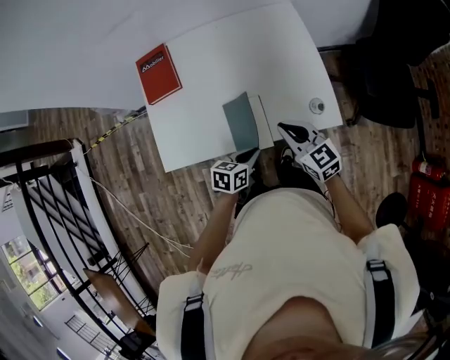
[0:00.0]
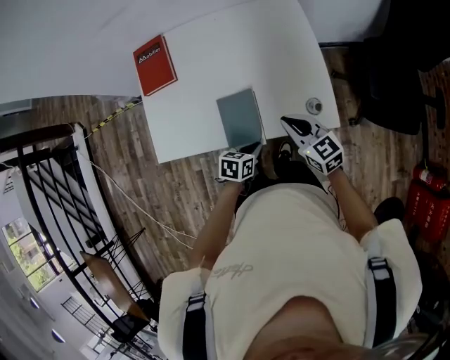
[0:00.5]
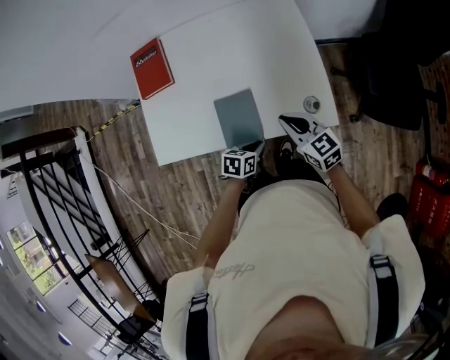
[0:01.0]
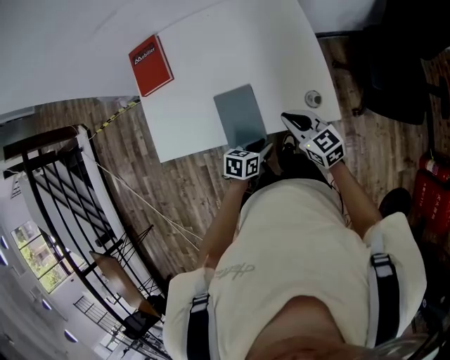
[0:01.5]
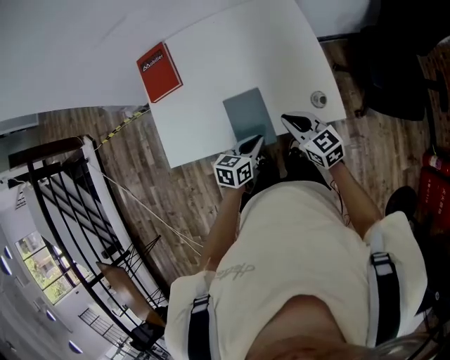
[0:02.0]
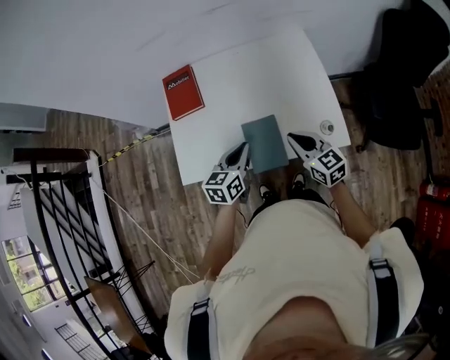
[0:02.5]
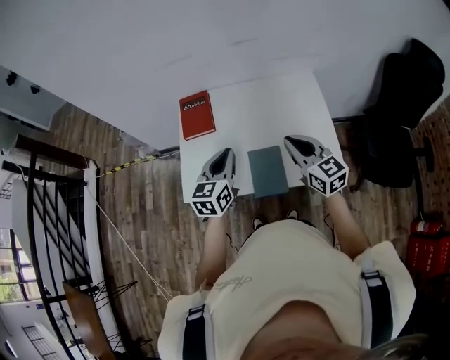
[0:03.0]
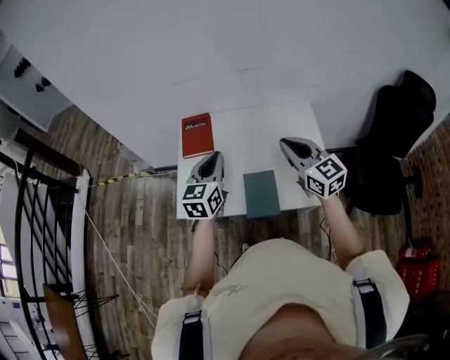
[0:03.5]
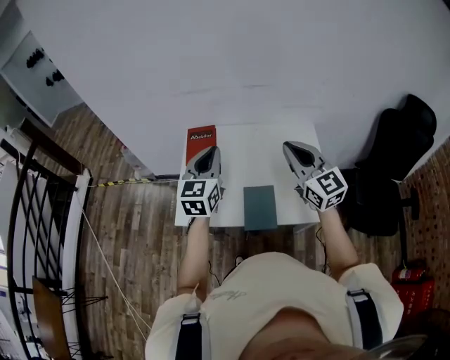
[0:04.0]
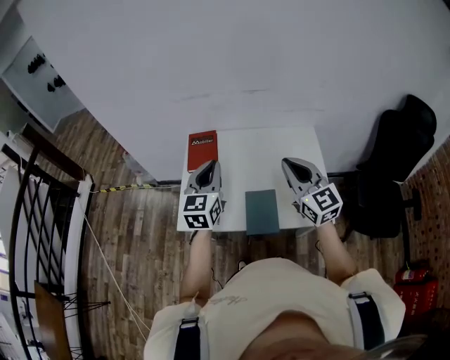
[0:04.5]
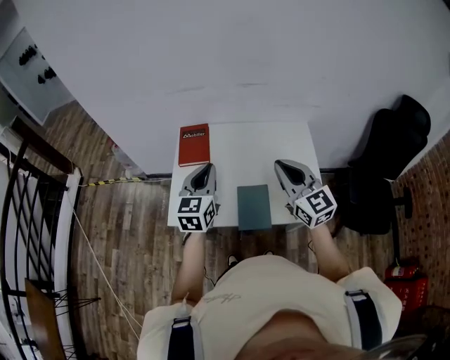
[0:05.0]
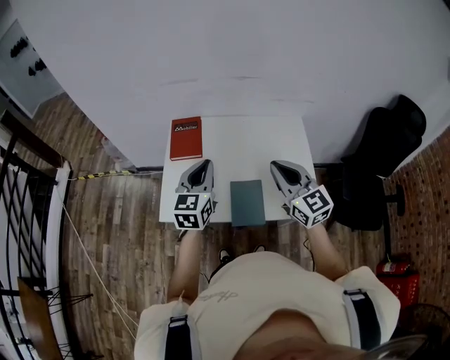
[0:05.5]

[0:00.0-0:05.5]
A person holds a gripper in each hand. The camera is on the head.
0:00.0 to 0:02.0: The left gripper reaches some 5 cm downward, then returns, and opens, then closes again.
0:02.0 to 0:03.5: The right gripper heads upward, covering roughly 25 cm, and rotates approximately 20 degrees. Meanwhile the left gripper travels upward, to the left and forward by some 35 cm, and changes its angle by approximately 40 degrees.

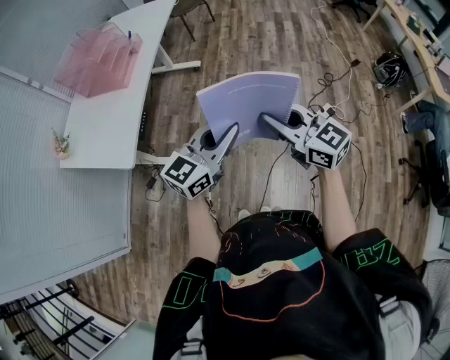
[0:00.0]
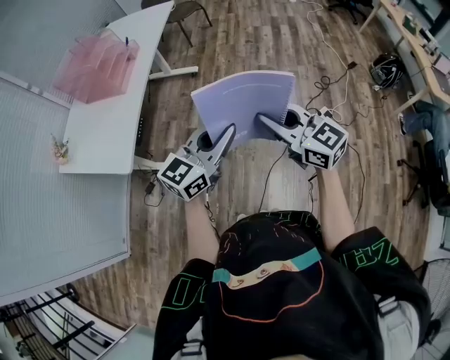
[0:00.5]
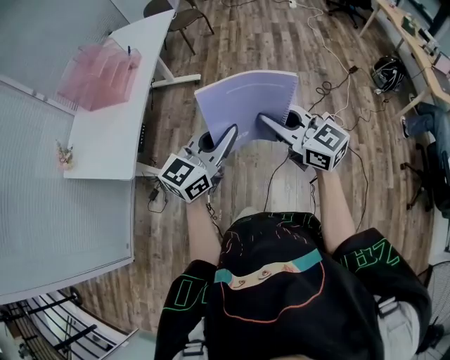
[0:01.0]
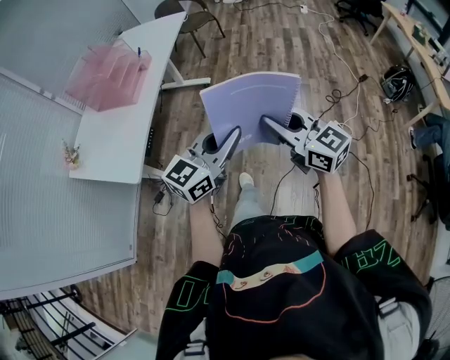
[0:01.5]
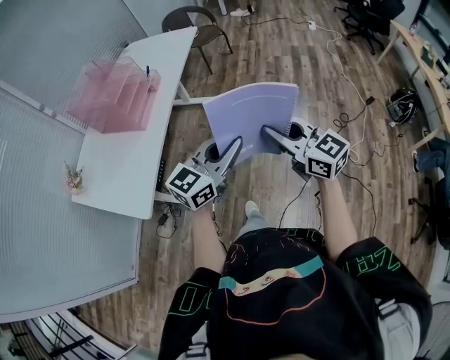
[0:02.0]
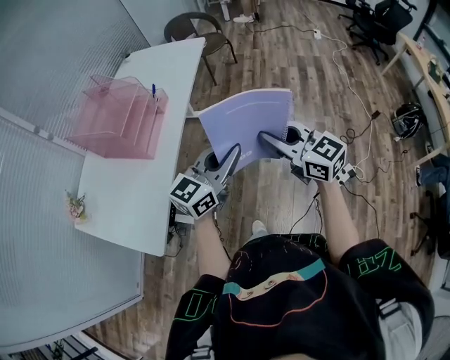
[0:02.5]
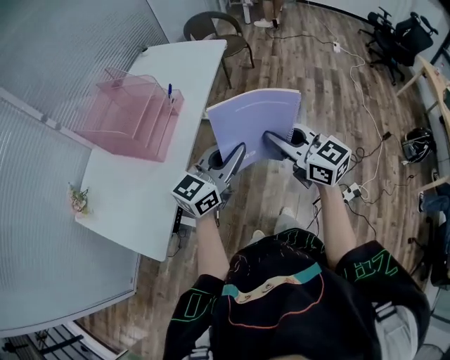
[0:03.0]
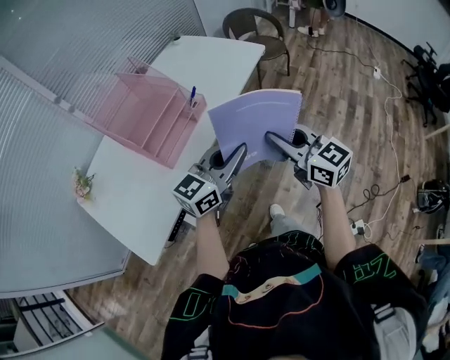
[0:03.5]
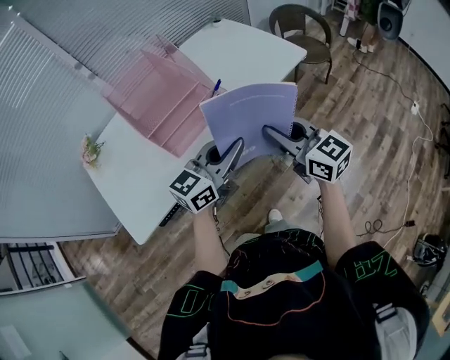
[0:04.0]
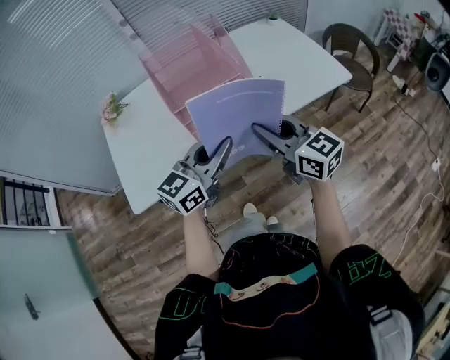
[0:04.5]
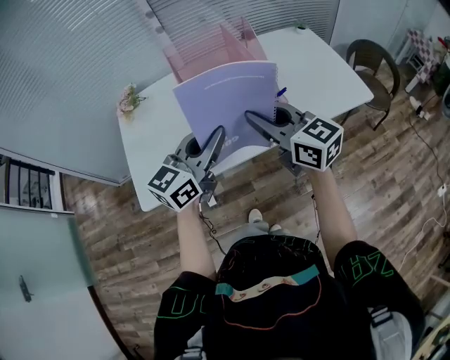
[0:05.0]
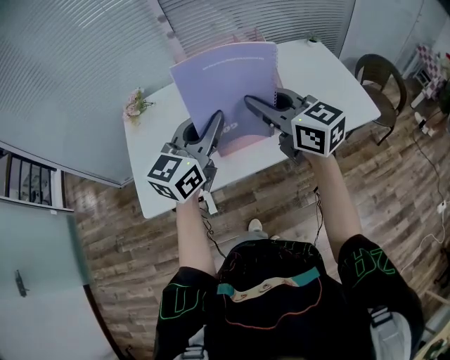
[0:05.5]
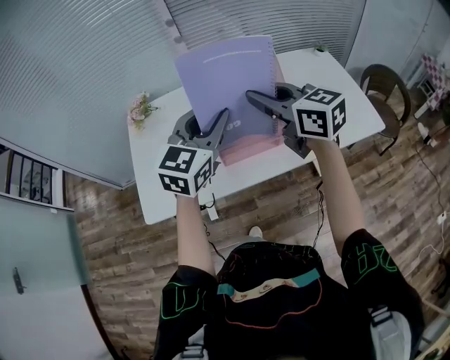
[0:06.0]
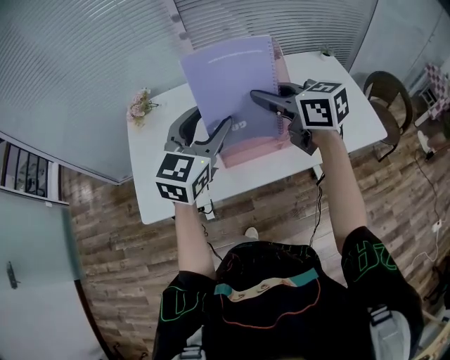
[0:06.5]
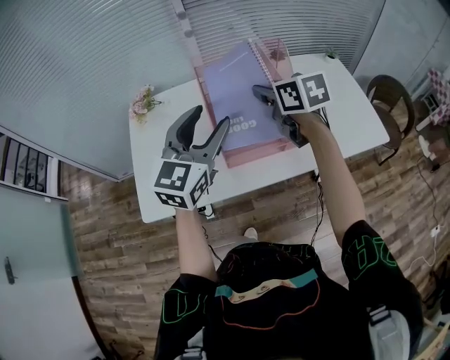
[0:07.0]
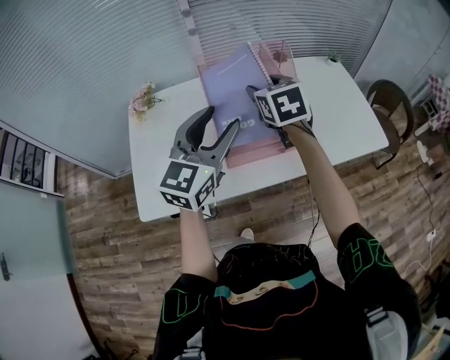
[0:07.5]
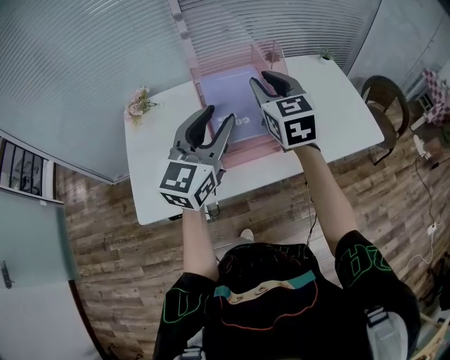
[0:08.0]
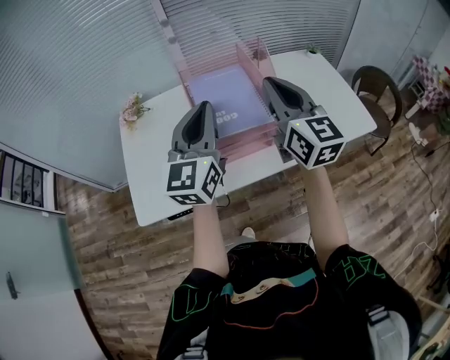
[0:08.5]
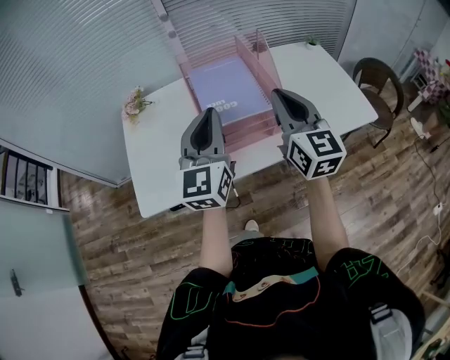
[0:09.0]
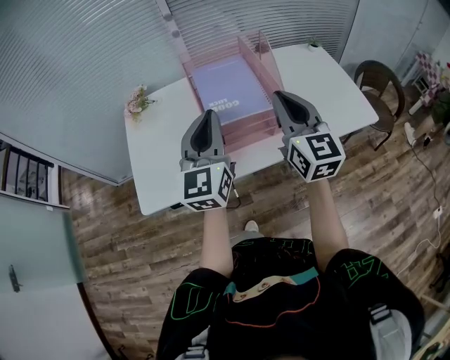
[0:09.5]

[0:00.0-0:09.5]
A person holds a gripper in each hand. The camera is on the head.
0:00.0 to 0:02.0: The two grippers go roughly 15 cm forward.
0:02.0 to 0:04.0: The two grippers travel together, roughly 40 cm. The left gripper rotates about 40 degrees. The right gripper swivels about 30 degrees.
0:04.0 to 0:05.5: The left gripper moves some 25 cm, and changes its angle by some 40 degrees. The right gripper changes place by some 25 cm, and changes its angle by approximately 30 degrees.
0:05.5 to 0:07.5: The right gripper heads forward and downward, covering some 15 cm, changes its angle by roughly 40 degrees, and opens its fingers. Meanwhile the left gripper opens its fingers.
0:07.5 to 0:09.5: The left gripper closes its fingers. Meanwhile the right gripper moves backward and to the right, roughly 20 cm, tilts its fingers about 30 degrees upward, and closes.

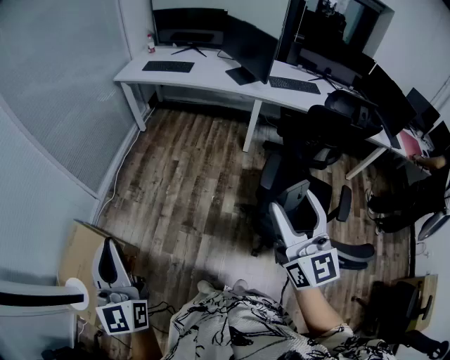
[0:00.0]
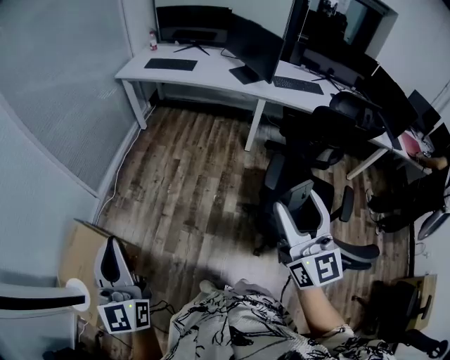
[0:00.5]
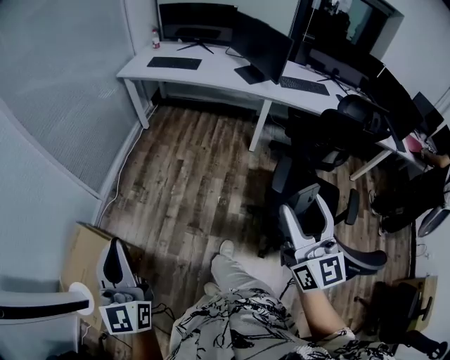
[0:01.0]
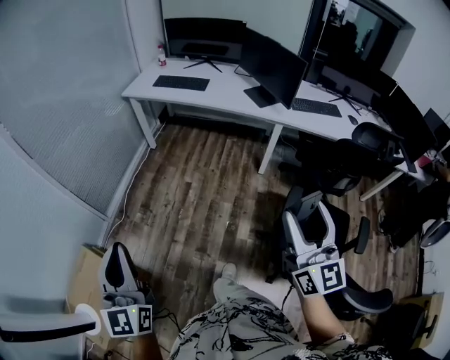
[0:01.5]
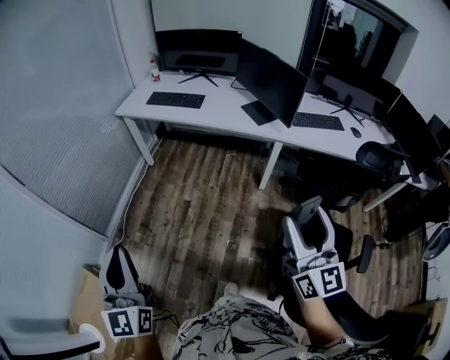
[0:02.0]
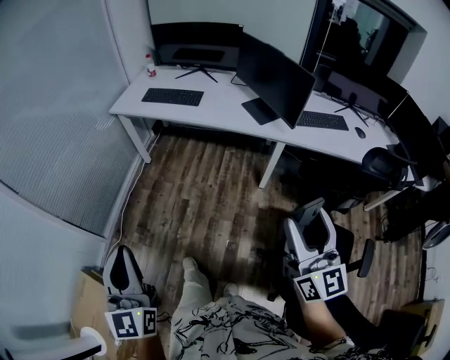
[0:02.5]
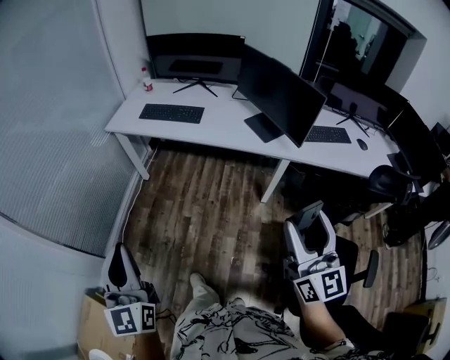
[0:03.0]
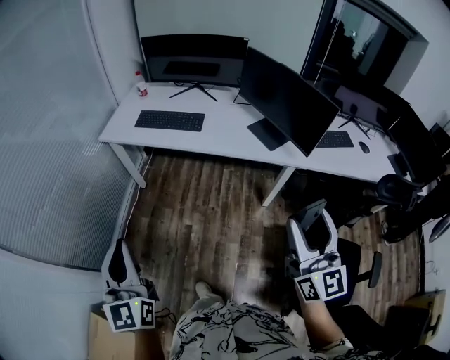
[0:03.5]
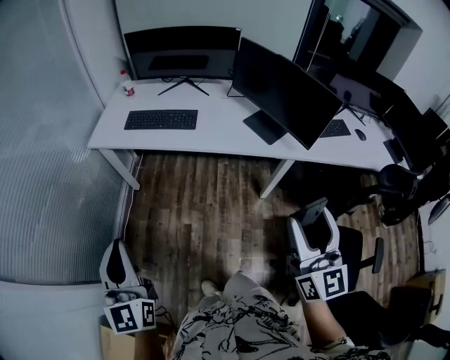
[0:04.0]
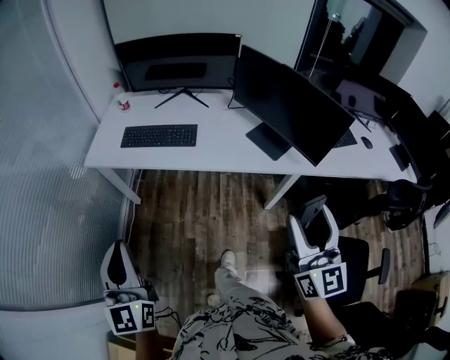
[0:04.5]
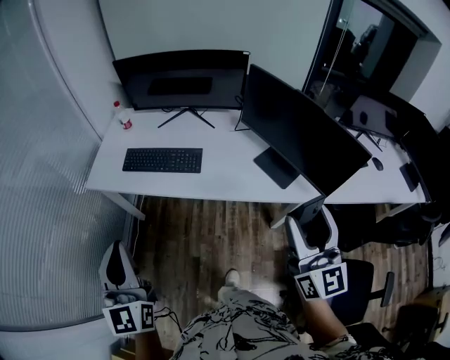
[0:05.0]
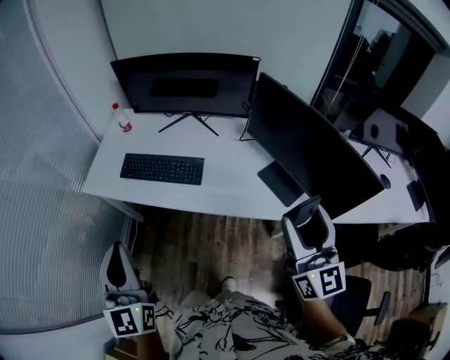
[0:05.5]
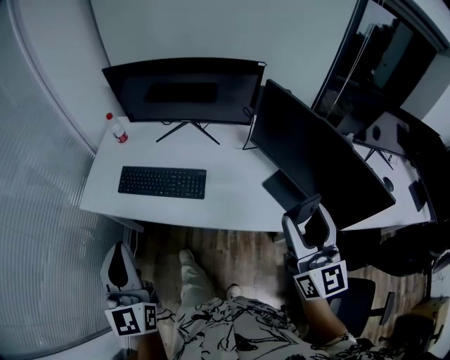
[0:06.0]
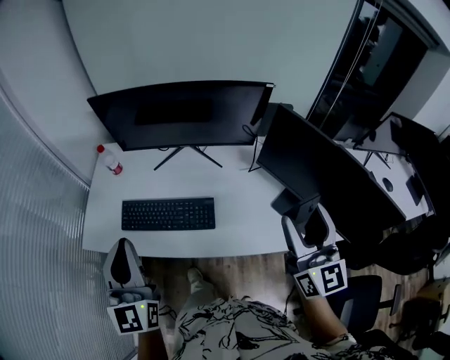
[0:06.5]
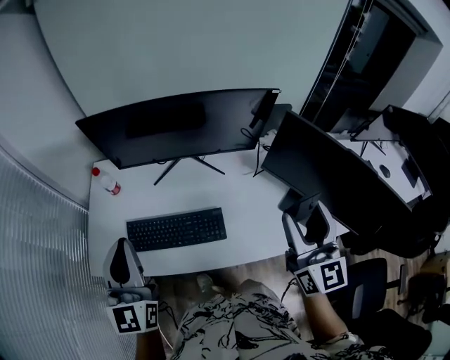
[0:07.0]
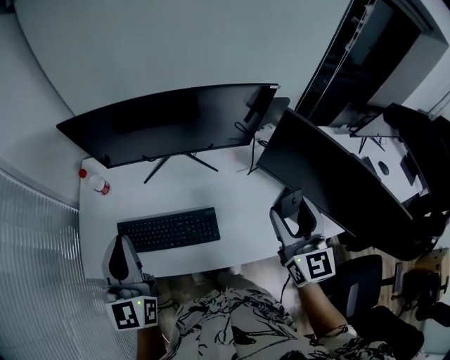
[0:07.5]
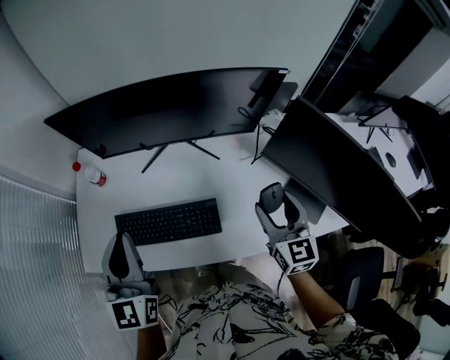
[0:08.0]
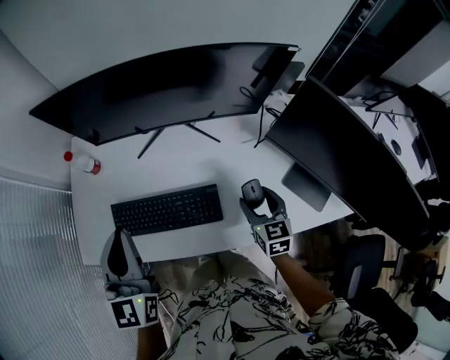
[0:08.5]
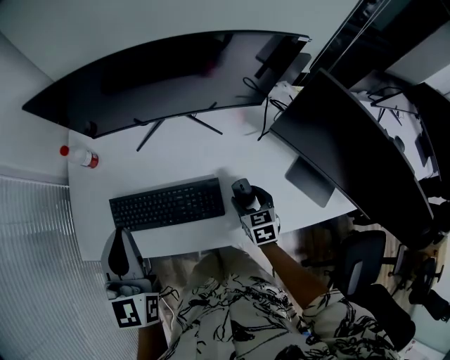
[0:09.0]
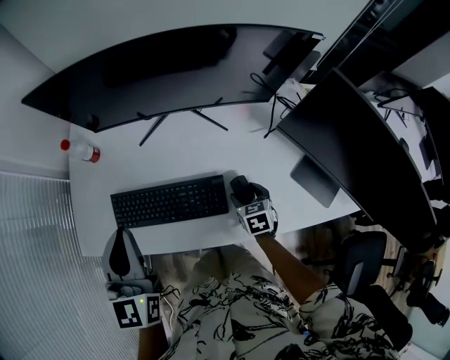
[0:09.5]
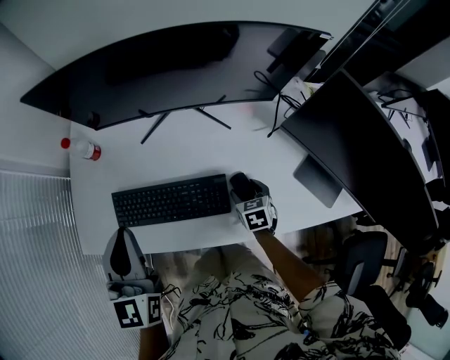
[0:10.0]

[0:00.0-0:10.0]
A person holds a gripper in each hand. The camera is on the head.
0:00.0 to 0:02.0: The two grippers go roughly 30 cm forward.
0:02.0 to 0:04.0: Both grippers move forward, roughly 35 cm.
0:04.0 to 0:06.0: Both grippers travel together forward, about 40 cm.
0:06.0 to 0:08.0: The left gripper shifts some 30 cm forward; the right gripper is displaced forward and downward by approximately 30 cm, and turns by some 30 degrees.
0:08.0 to 0:10.0: The right gripper heads downward, covering about 30 cm, and angles its fingers downward, by approximately 40 degrees, while the left gripper goes about 5 cm downward.

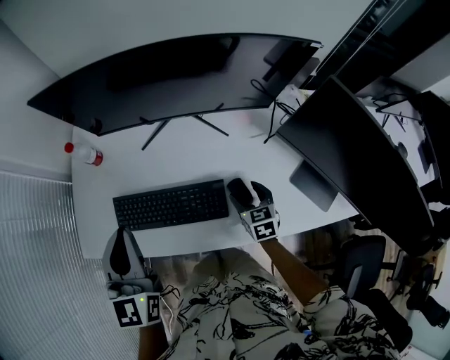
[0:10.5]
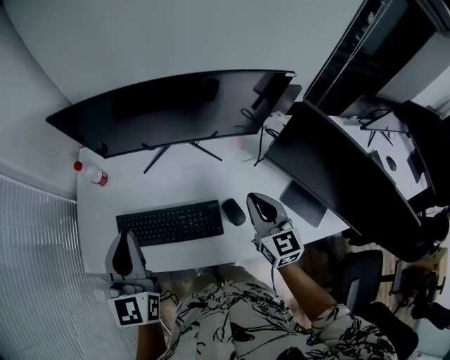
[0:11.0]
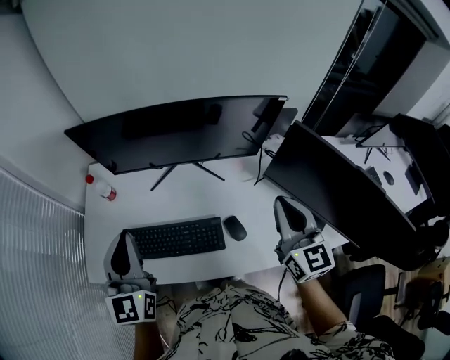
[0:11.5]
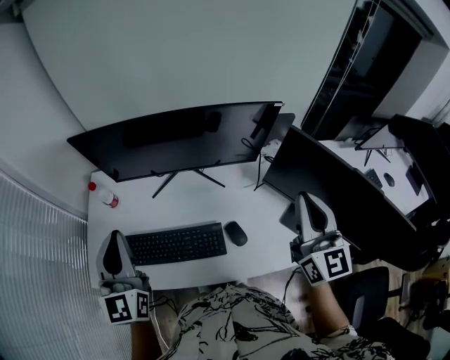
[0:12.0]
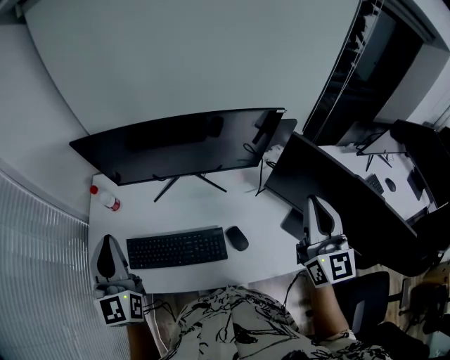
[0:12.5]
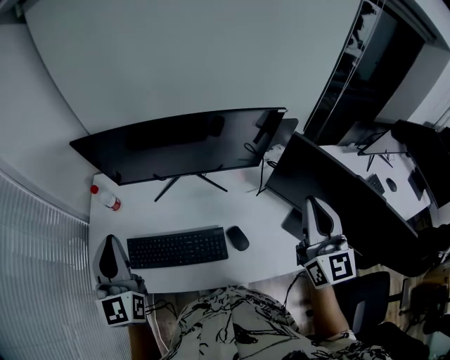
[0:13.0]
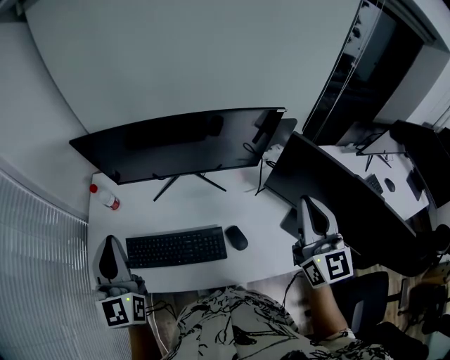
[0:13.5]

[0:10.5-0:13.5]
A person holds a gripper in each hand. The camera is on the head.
0:10.5 to 0:12.0: The left gripper is displaced upward by about 10 cm, while the right gripper moves upward, roughly 40 cm, tips its fingers upward by roughly 50 degrees, and closes its fingers.
0:12.0 to 0:13.5: The grippers stay close to where they were, moving slightly.
